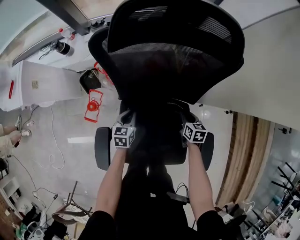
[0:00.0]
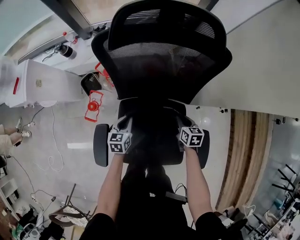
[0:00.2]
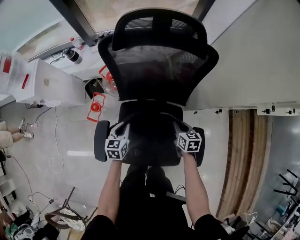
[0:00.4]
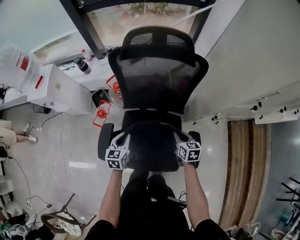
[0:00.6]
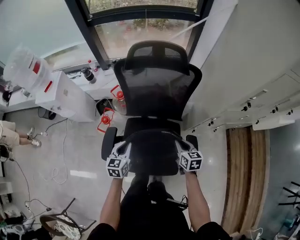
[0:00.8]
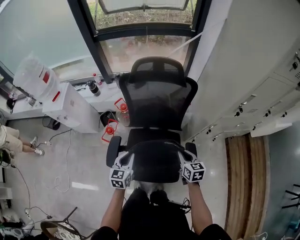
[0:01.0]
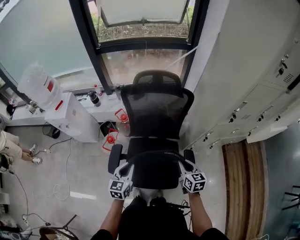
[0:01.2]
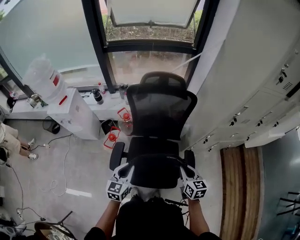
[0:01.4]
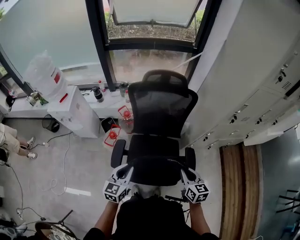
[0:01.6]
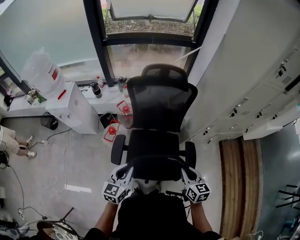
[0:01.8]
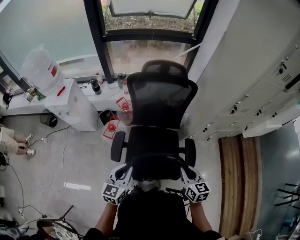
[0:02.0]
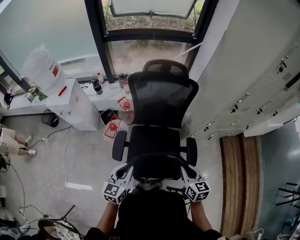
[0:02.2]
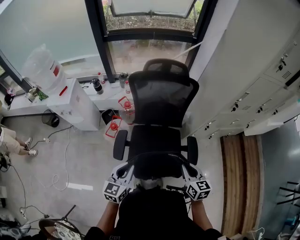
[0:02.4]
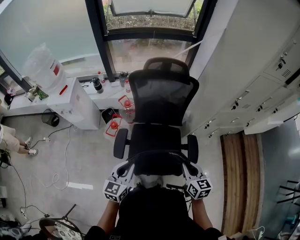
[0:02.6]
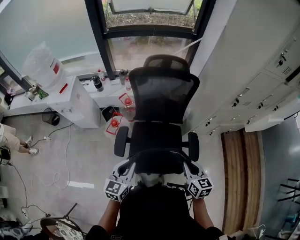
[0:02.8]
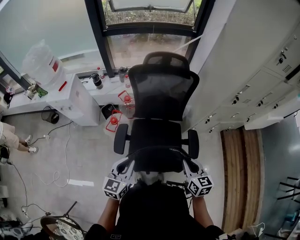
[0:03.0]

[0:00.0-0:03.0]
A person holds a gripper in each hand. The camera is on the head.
0:00.0 to 0:01.6: Both grippers move upward and backward, about 50 cm. The right gripper changes its angle by some 30 degrees. The left gripper turns by approximately 30 degrees.
0:01.6 to 0:03.0: Both grippers move backward, approximately 5 cm.

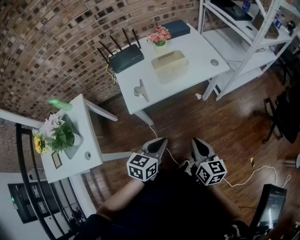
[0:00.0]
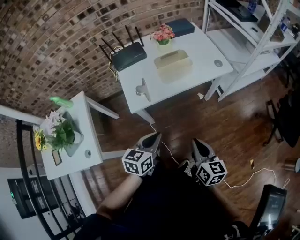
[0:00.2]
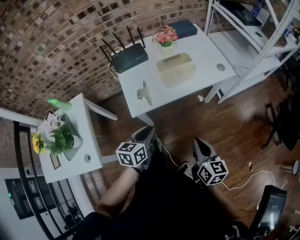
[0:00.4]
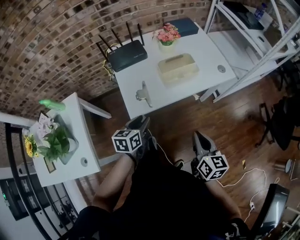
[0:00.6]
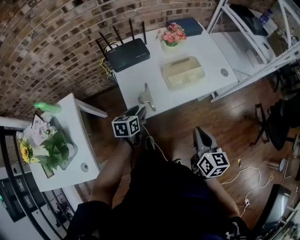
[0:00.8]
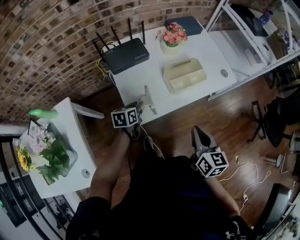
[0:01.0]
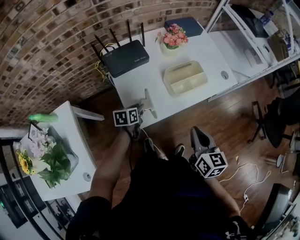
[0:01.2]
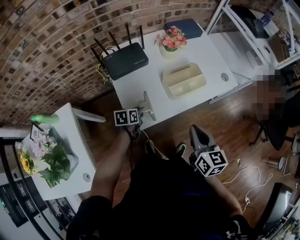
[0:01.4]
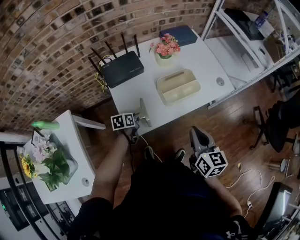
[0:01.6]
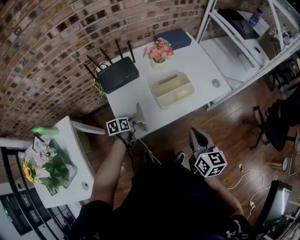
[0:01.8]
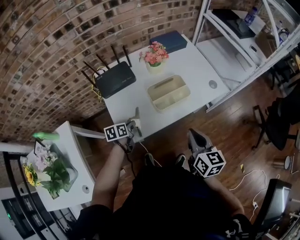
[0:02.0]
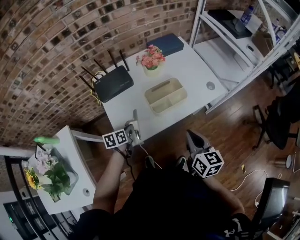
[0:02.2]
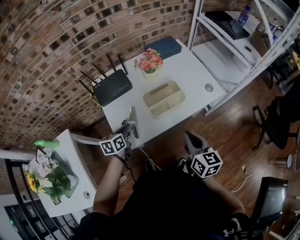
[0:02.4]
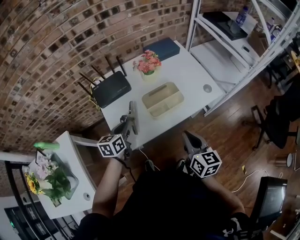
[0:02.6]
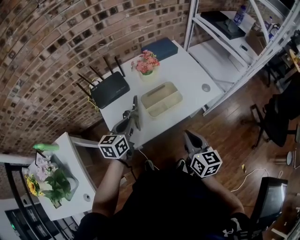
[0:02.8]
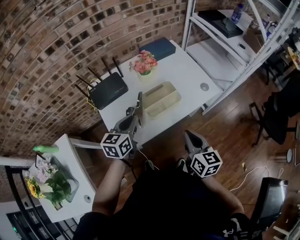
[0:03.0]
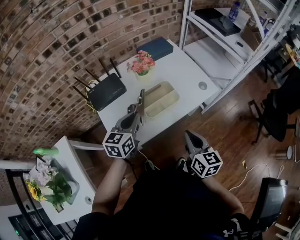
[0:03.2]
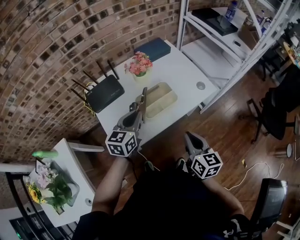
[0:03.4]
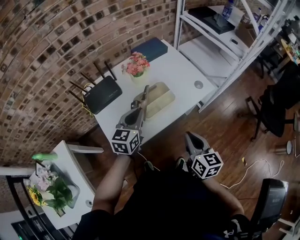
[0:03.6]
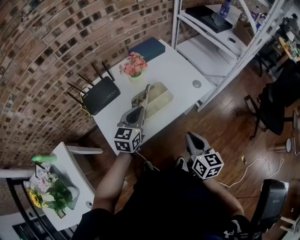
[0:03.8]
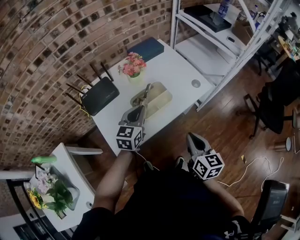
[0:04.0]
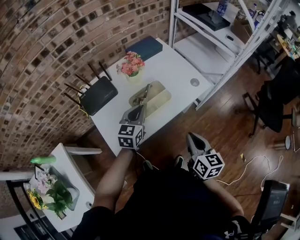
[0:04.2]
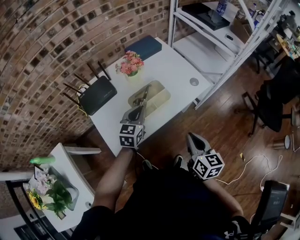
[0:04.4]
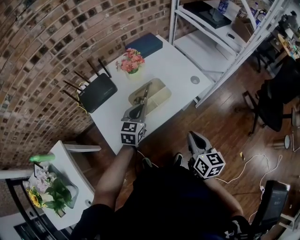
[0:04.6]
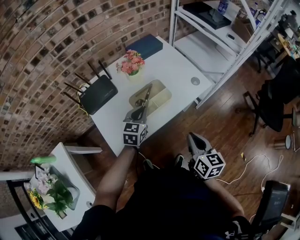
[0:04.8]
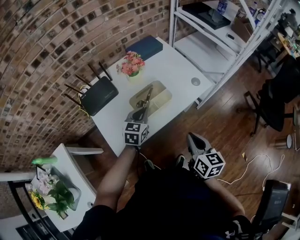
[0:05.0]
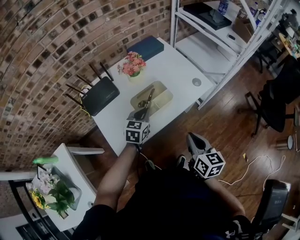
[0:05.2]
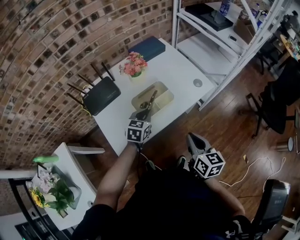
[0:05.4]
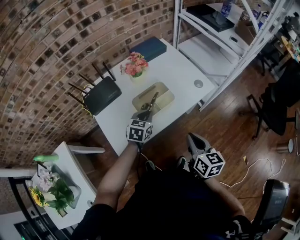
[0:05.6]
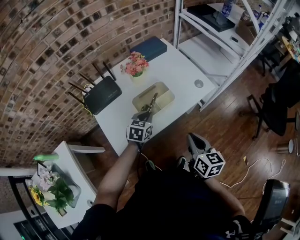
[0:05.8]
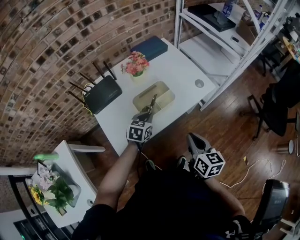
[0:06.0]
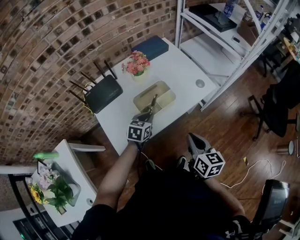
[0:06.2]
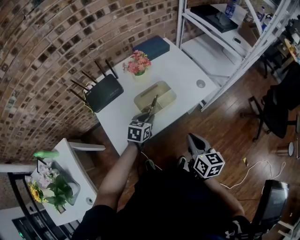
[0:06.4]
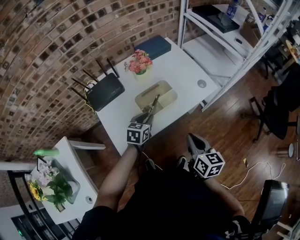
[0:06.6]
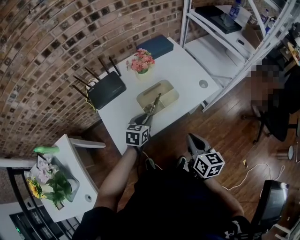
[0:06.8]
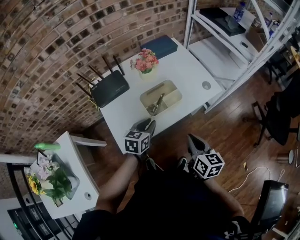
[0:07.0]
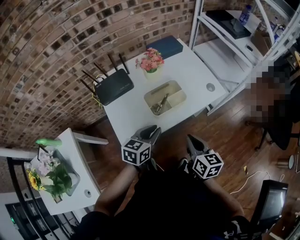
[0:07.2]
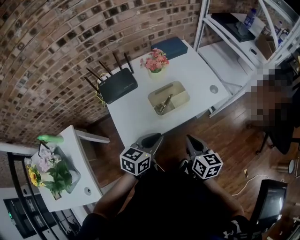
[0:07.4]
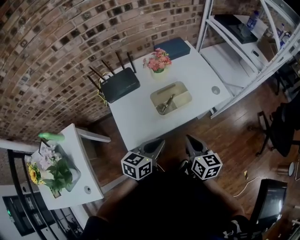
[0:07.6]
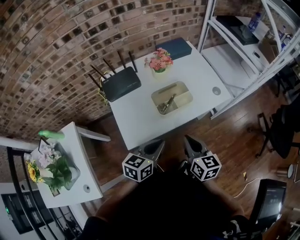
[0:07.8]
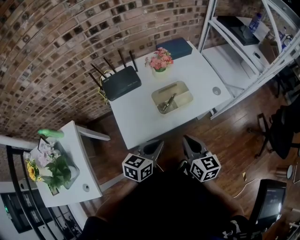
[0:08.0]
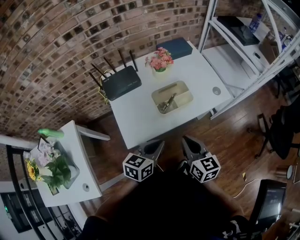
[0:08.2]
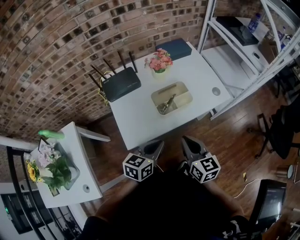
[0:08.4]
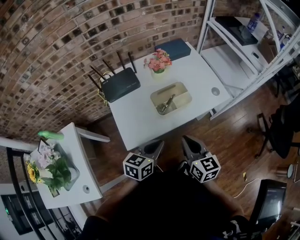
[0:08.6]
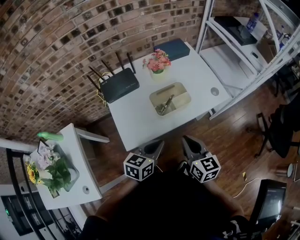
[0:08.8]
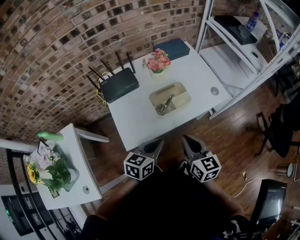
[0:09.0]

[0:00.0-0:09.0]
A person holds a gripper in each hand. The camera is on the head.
0:00.0 to 0:01.6: The left gripper is displaced forward, to the left and downward by some 40 cm, and rotates about 30 degrees. Meanwhile the right gripper moves forward, roughly 20 cm.
0:01.6 to 0:03.0: The left gripper moves upward and to the right, about 25 cm, and rotates roughly 40 degrees; the right gripper ends up some 5 cm from where it was.
0:03.0 to 0:04.4: The left gripper moves to the right and forward, about 10 cm. Meanwhile the right gripper travels to the right by some 5 cm.
0:04.4 to 0:06.0: The left gripper heads downward, covering approximately 5 cm.
0:06.0 to 0:07.6: The left gripper travels backward and upward by approximately 20 cm, and turns by some 30 degrees; the right gripper heads to the left, covering some 5 cm.
0:07.6 to 0:09.0: The grippers stay close to where they were, moving slightly.

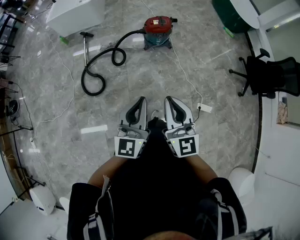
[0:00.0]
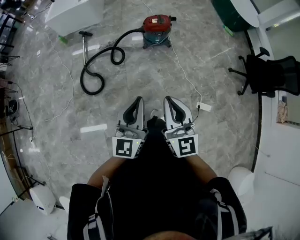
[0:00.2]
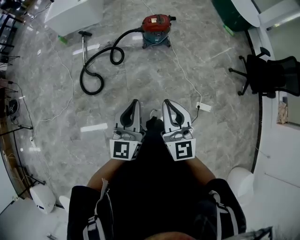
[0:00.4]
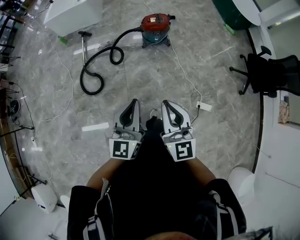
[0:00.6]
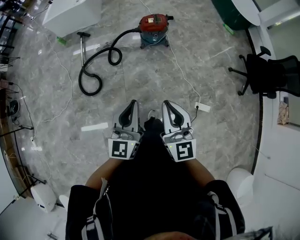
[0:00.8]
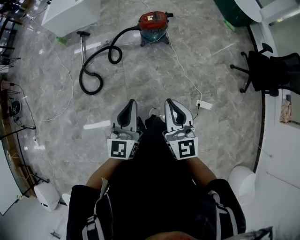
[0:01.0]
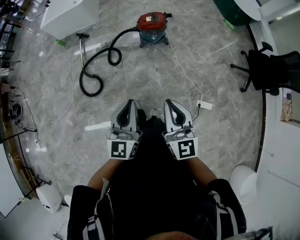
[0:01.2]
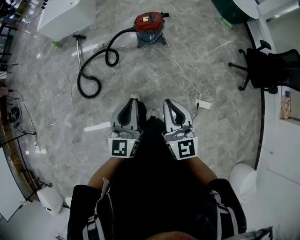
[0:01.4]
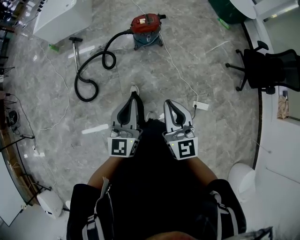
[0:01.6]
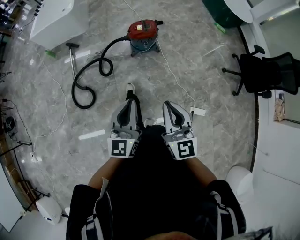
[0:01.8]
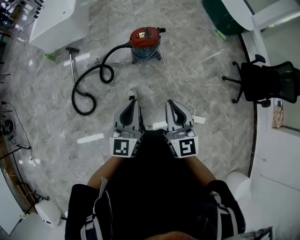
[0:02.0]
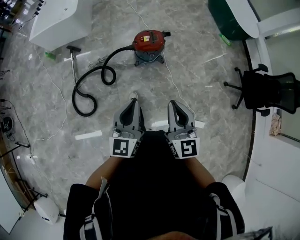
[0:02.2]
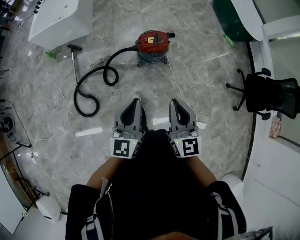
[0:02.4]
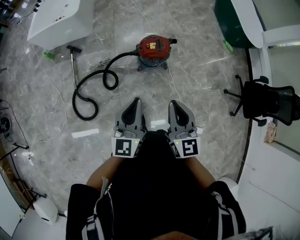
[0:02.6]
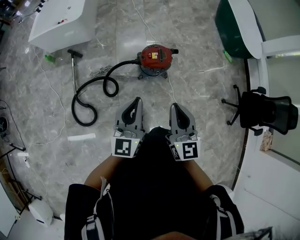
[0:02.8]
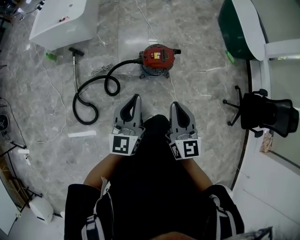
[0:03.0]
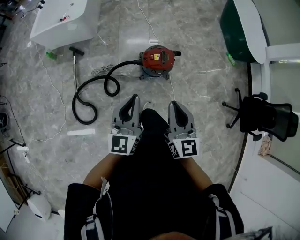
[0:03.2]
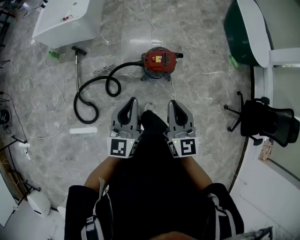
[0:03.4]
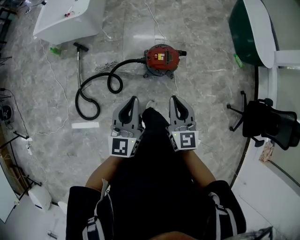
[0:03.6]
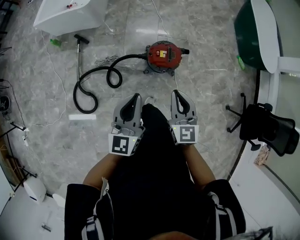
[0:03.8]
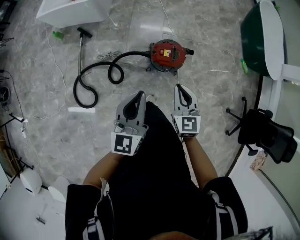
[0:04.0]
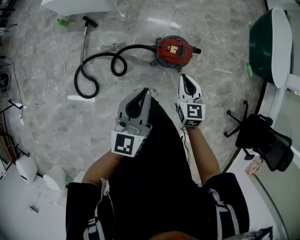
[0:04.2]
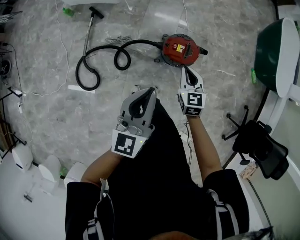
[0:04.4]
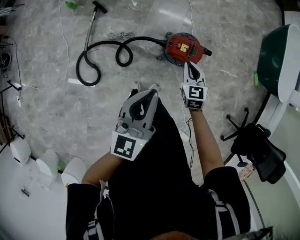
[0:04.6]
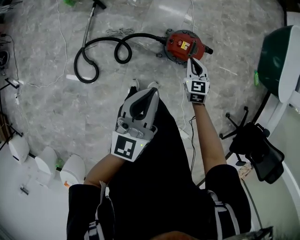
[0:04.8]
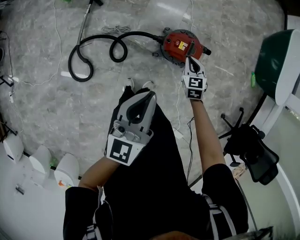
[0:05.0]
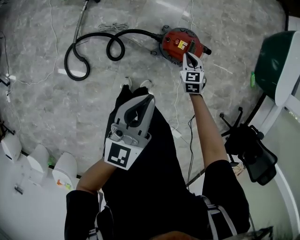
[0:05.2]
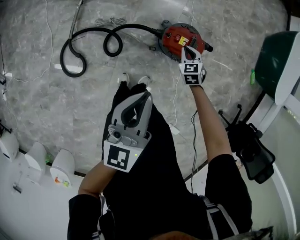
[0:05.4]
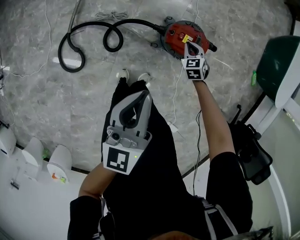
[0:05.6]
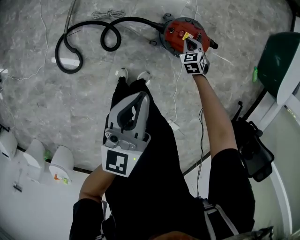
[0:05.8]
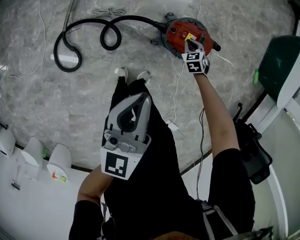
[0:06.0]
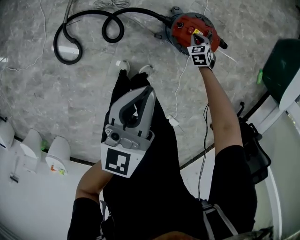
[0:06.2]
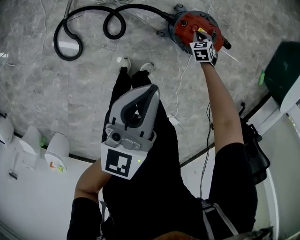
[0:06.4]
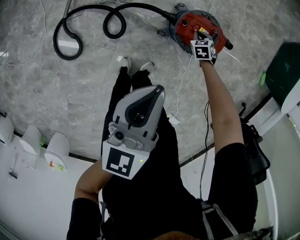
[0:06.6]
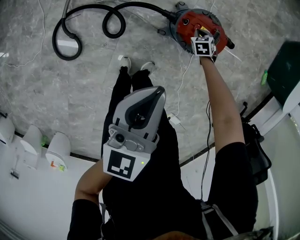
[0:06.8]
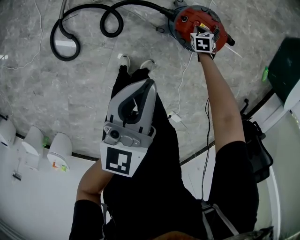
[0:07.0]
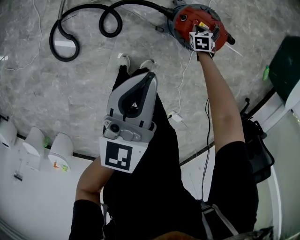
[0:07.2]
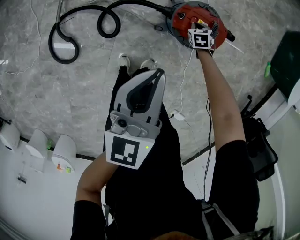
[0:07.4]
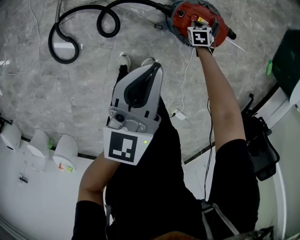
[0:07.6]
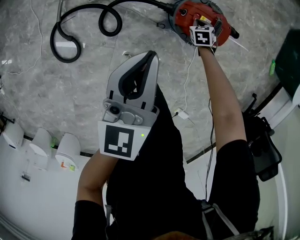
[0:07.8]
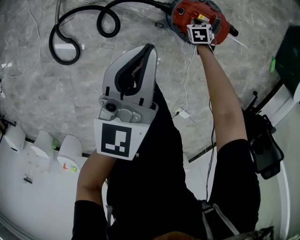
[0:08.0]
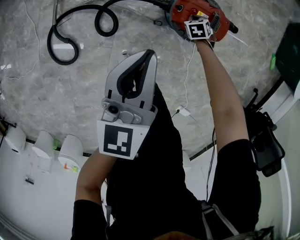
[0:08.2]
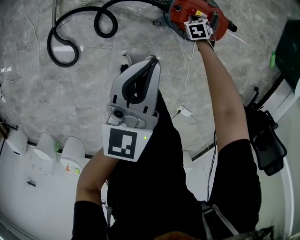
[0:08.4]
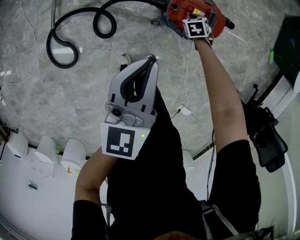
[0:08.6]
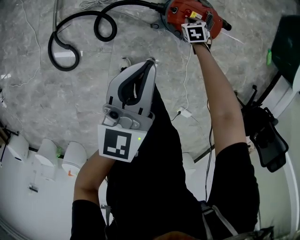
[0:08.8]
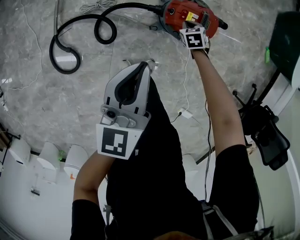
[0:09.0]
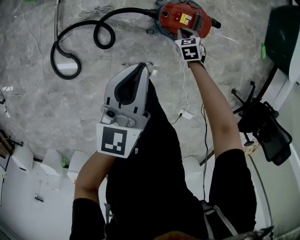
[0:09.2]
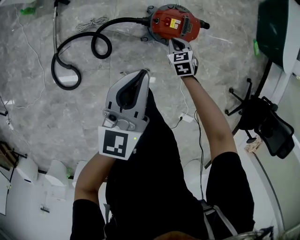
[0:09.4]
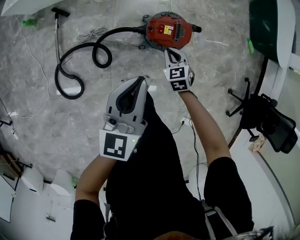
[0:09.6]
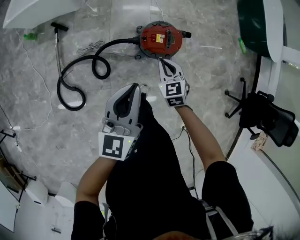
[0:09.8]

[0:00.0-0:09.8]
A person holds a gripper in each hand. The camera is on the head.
0:00.0 to 0:01.4: The left gripper shifts some 10 cm forward and to the right. Meanwhile the right gripper goes about 10 cm to the right.
0:01.4 to 0:02.8: Both grippers move forward, roughly 40 cm.
0:02.8 to 0:04.2: The right gripper heads forward and downward, covering roughly 25 cm, and changes its angle by some 20 degrees. Meanwhile the left gripper shifts some 10 cm forward.
0:04.2 to 0:05.6: The right gripper moves downward and forward, about 35 cm, and turns by roughly 40 degrees. Meanwhile the left gripper travels downward by some 10 cm.
0:05.6 to 0:07.0: The right gripper heads downward, covering approximately 20 cm, and rotates some 20 degrees; the left gripper goes approximately 10 cm downward.
0:07.0 to 0:08.4: The left gripper travels downward by some 5 cm.
0:08.4 to 0:09.8: The left gripper moves upward, roughly 15 cm. The right gripper goes some 35 cm upward, and tilts its fingers roughly 30 degrees upward.

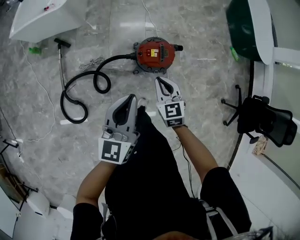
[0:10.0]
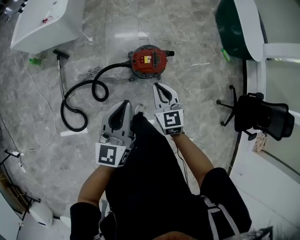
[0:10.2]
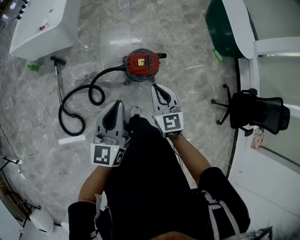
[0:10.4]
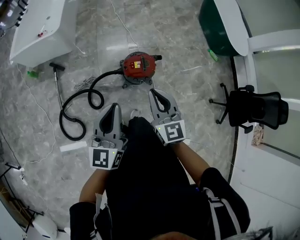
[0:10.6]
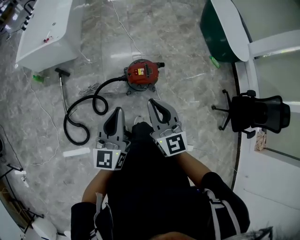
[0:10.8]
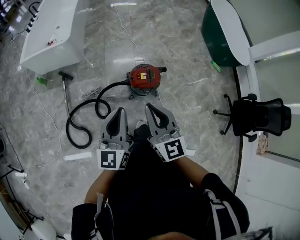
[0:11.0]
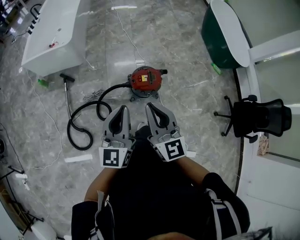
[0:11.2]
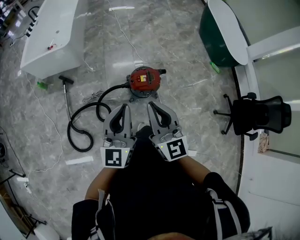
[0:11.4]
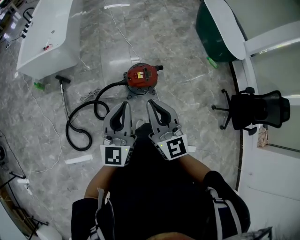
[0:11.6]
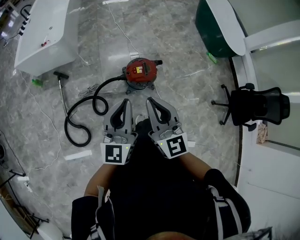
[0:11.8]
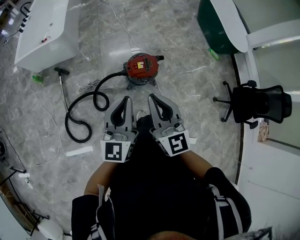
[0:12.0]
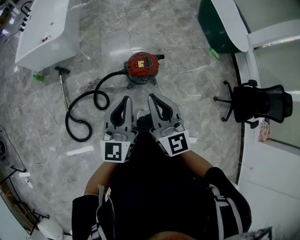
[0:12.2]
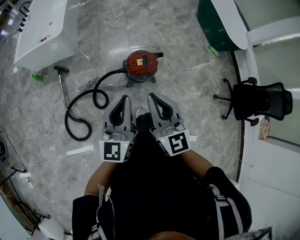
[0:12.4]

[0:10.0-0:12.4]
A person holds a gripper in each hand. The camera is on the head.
0:10.0 to 0:11.2: The right gripper heads upward and backward, covering approximately 30 cm, and angles its fingers upward, by some 30 degrees. The left gripper heads upward and backward, covering some 15 cm.
0:11.2 to 0:12.4: The grippers stay close to where they were, moving slightly.
